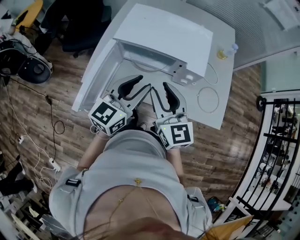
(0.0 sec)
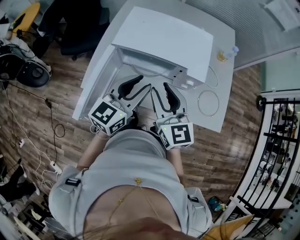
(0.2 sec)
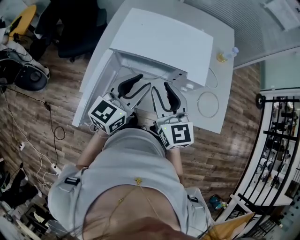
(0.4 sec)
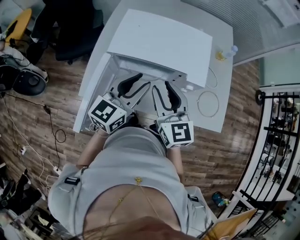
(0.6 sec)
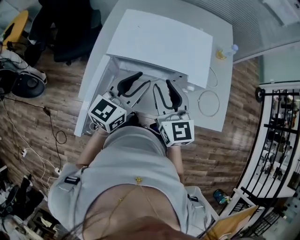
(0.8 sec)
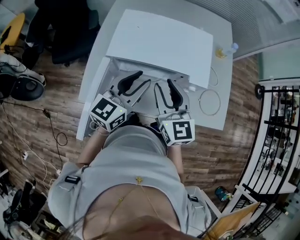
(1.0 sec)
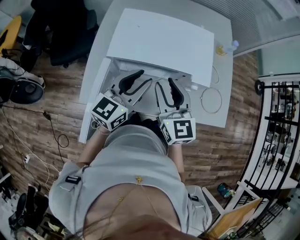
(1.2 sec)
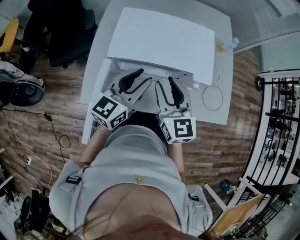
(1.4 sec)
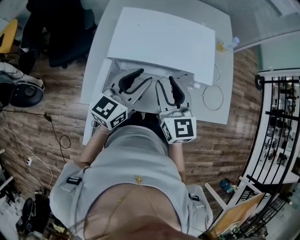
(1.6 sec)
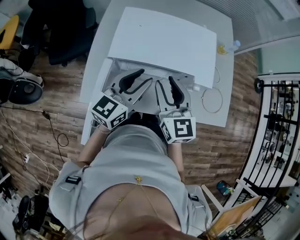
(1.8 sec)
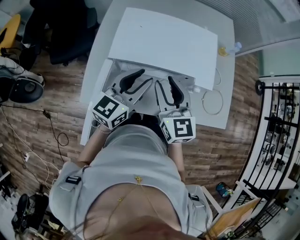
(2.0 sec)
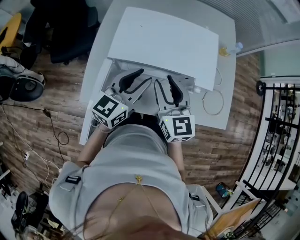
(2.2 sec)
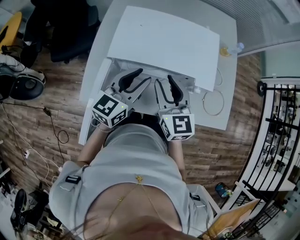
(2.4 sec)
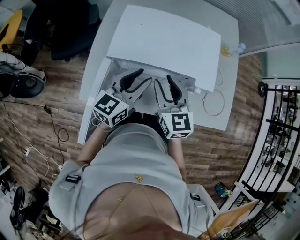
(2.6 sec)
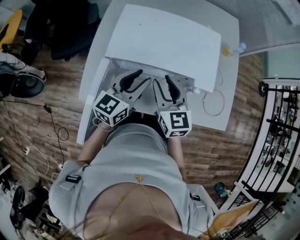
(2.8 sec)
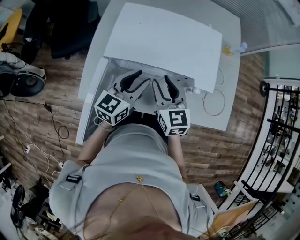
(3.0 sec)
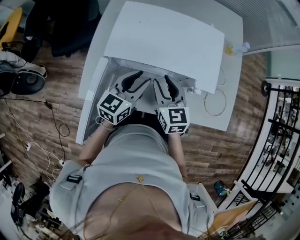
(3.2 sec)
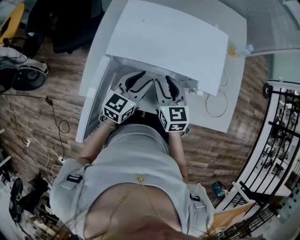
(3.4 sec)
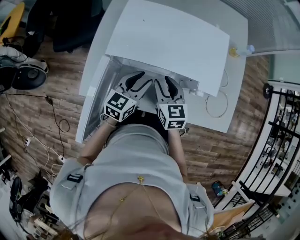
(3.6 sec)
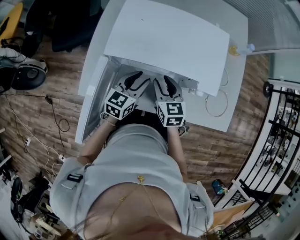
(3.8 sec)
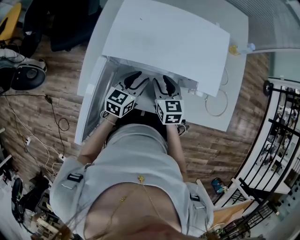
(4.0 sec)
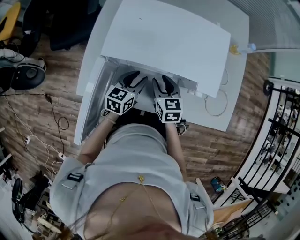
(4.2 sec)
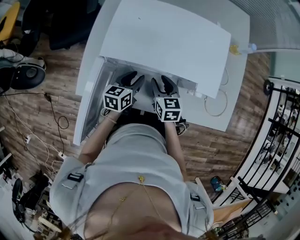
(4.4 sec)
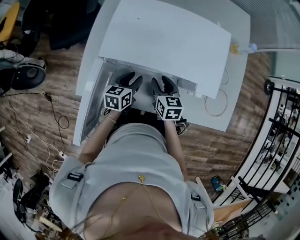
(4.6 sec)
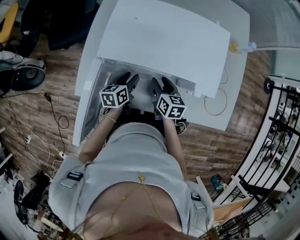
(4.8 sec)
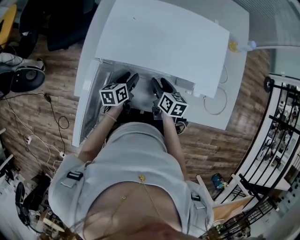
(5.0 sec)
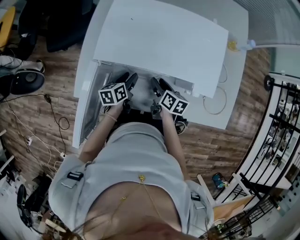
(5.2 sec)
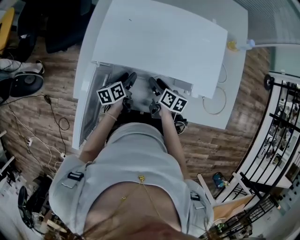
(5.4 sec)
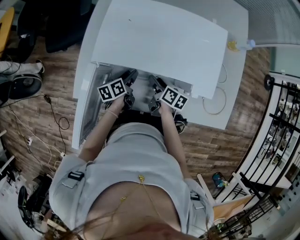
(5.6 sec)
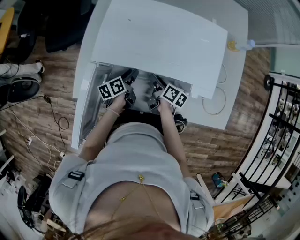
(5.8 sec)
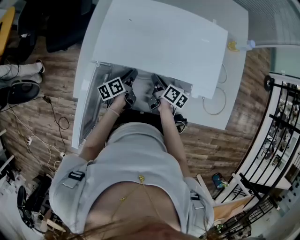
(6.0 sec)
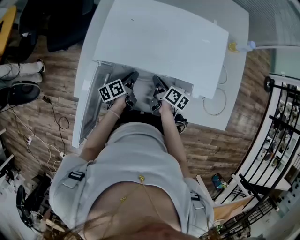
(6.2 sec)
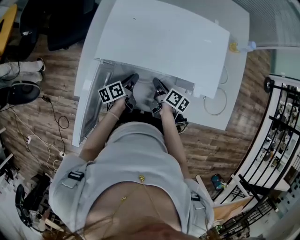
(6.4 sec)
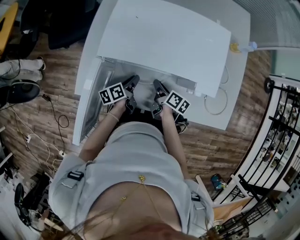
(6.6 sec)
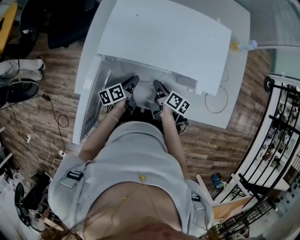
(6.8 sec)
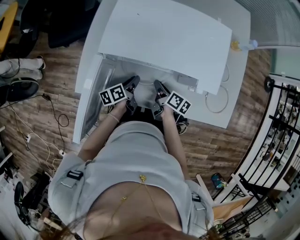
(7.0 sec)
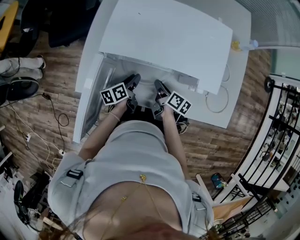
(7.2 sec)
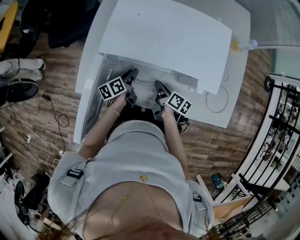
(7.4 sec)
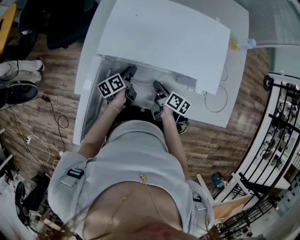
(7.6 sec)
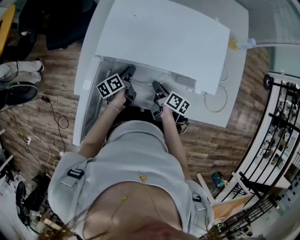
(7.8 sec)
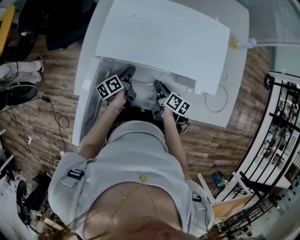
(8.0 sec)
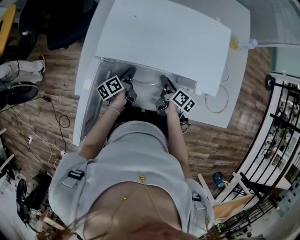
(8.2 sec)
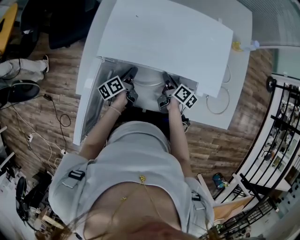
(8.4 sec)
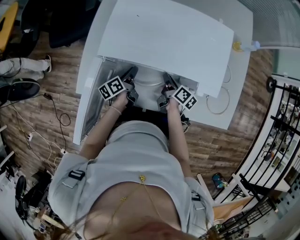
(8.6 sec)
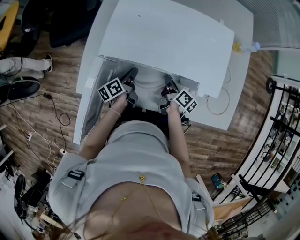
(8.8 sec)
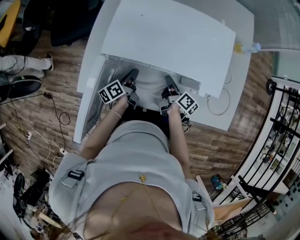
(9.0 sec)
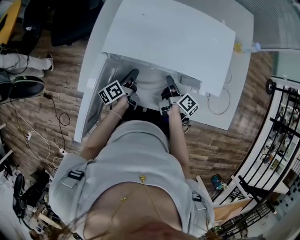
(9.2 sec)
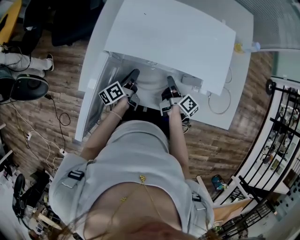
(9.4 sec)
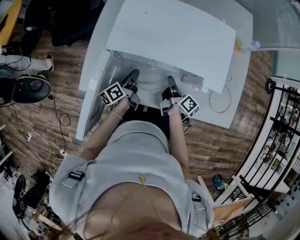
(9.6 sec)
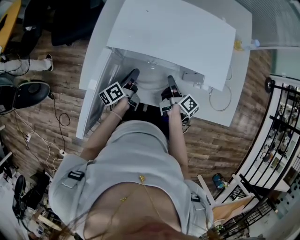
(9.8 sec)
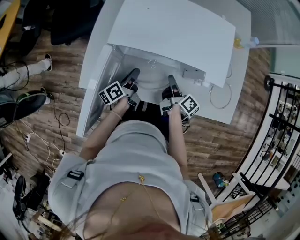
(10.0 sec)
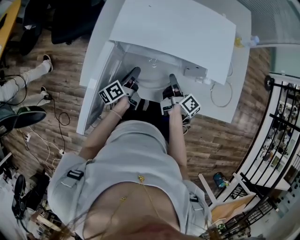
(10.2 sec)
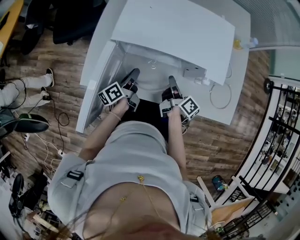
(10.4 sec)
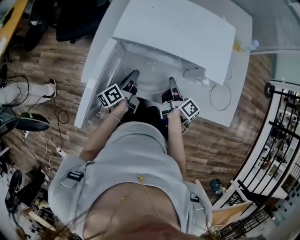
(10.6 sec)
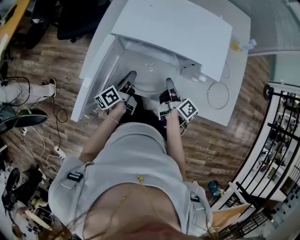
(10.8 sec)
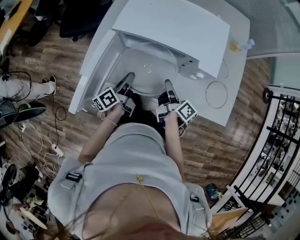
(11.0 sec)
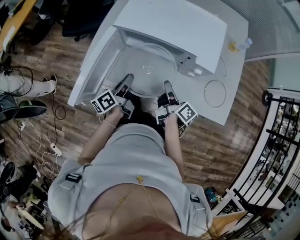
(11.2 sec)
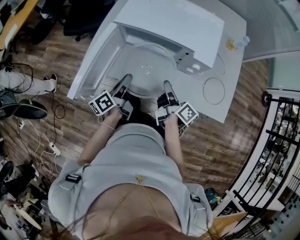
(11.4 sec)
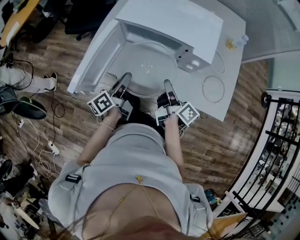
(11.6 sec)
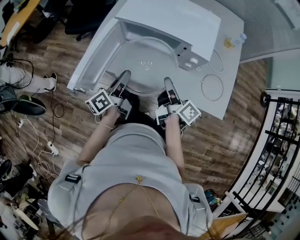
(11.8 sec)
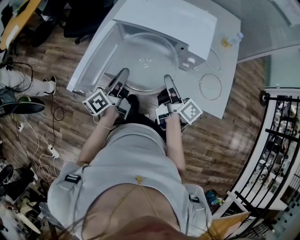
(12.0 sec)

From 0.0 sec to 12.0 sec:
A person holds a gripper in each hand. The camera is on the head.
From 0.0 sec to 1.6 sec: The left gripper heads forward and to the left, covering about 10 cm. Meanwhile the right gripper travels forward by some 10 cm.
From 1.6 sec to 3.0 sec: Both grippers move downward, about 5 cm.
From 3.0 sec to 4.4 sec: The grippers both shift downward by roughly 15 cm. The left gripper rotates some 30 degrees.
From 4.4 sec to 6.0 sec: The grippers both shift downward by some 10 cm. The right gripper rotates around the line of its fingers by approximately 50 degrees, clockwise from behind. Meanwhile the left gripper swivels roughly 40 degrees.
From 6.0 sec to 7.6 sec: There are only small adjustments of the grippers.
From 7.6 sec to 9.0 sec: The right gripper ends up roughly 5 cm from where it was.
From 9.0 sec to 10.4 sec: The right gripper changes place by about 5 cm. Meanwhile the left gripper moves about 5 cm.
From 10.4 sec to 12.0 sec: The grippers both shift upward and backward by some 20 cm. The right gripper changes its angle by roughly 20 degrees.

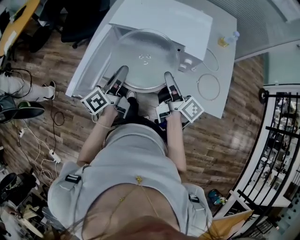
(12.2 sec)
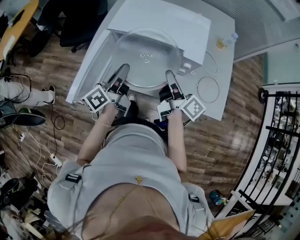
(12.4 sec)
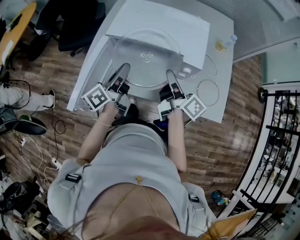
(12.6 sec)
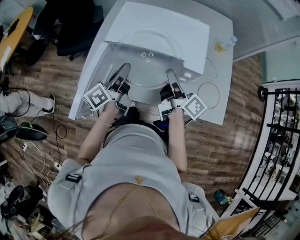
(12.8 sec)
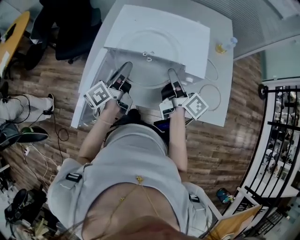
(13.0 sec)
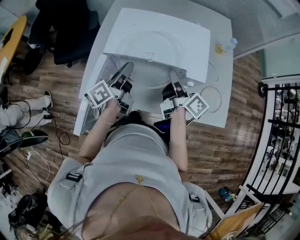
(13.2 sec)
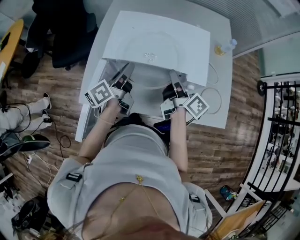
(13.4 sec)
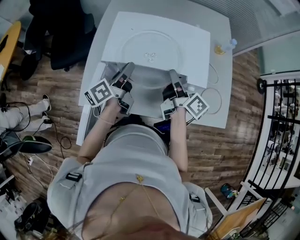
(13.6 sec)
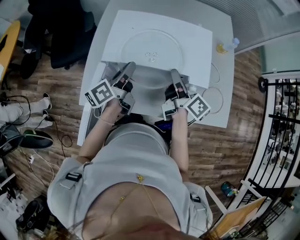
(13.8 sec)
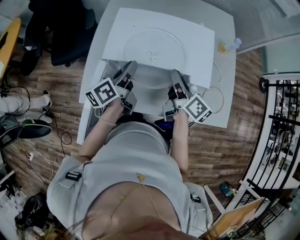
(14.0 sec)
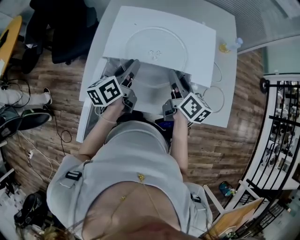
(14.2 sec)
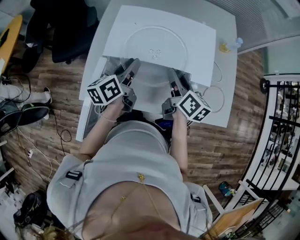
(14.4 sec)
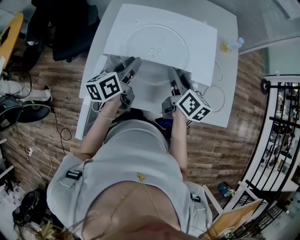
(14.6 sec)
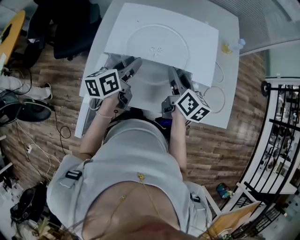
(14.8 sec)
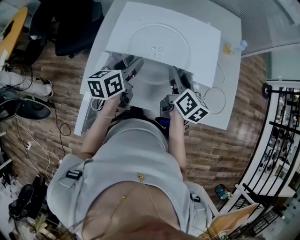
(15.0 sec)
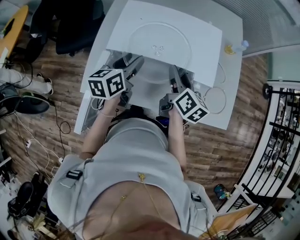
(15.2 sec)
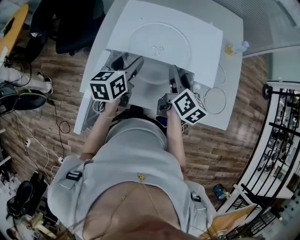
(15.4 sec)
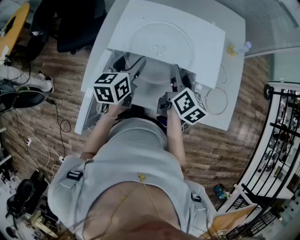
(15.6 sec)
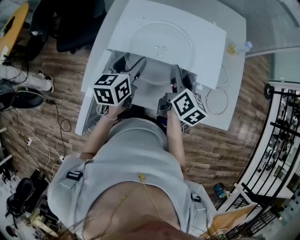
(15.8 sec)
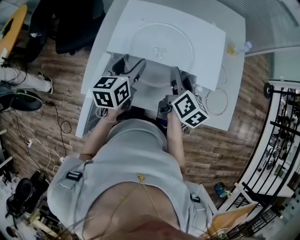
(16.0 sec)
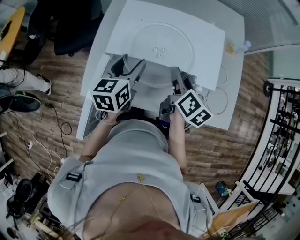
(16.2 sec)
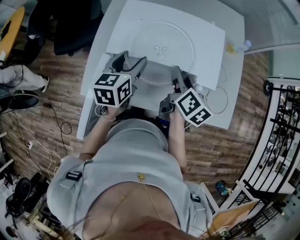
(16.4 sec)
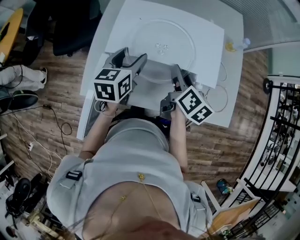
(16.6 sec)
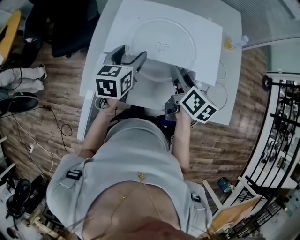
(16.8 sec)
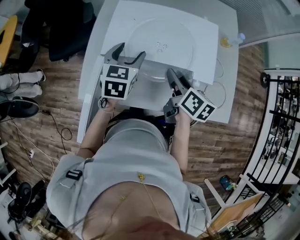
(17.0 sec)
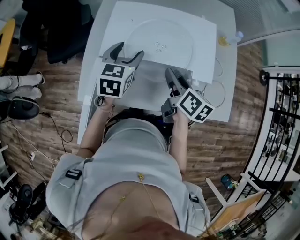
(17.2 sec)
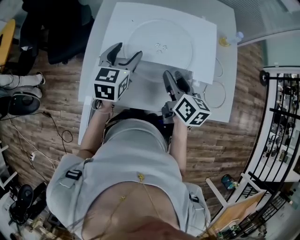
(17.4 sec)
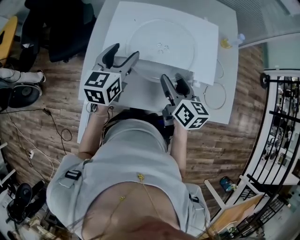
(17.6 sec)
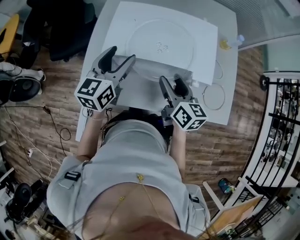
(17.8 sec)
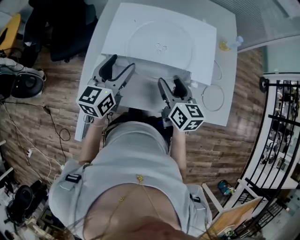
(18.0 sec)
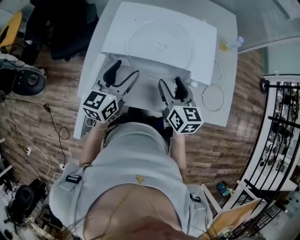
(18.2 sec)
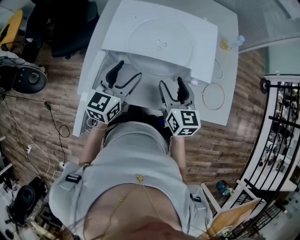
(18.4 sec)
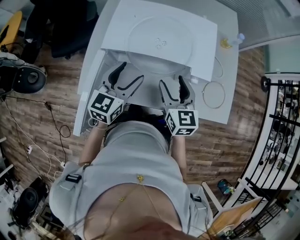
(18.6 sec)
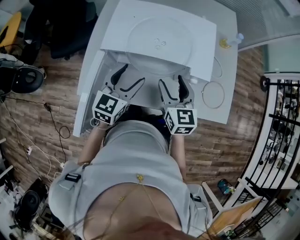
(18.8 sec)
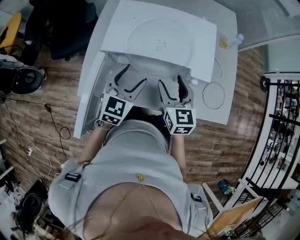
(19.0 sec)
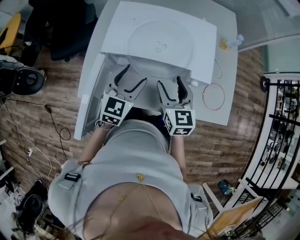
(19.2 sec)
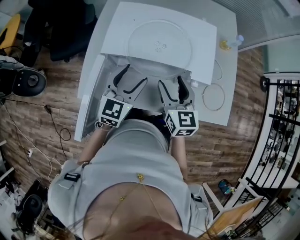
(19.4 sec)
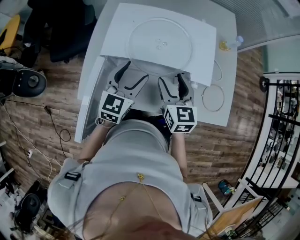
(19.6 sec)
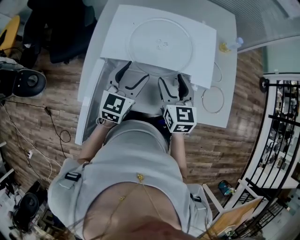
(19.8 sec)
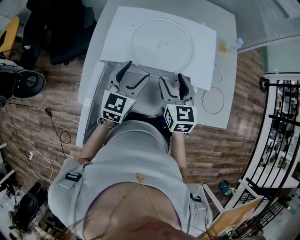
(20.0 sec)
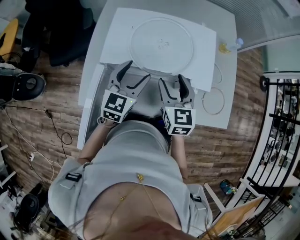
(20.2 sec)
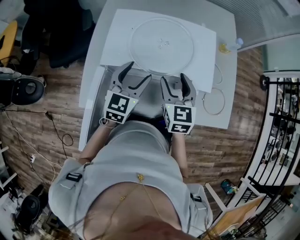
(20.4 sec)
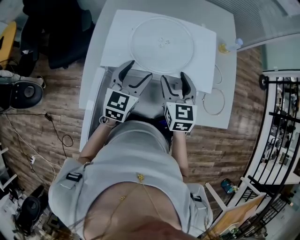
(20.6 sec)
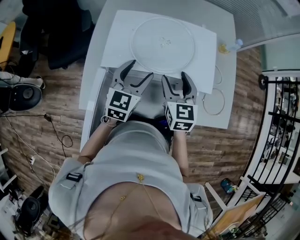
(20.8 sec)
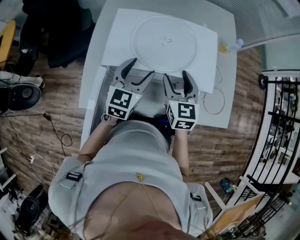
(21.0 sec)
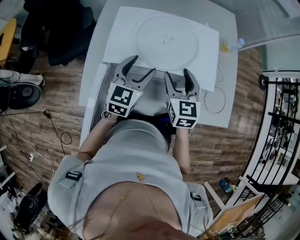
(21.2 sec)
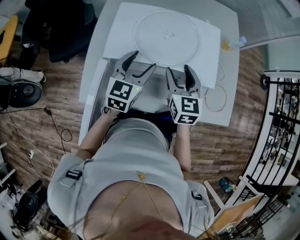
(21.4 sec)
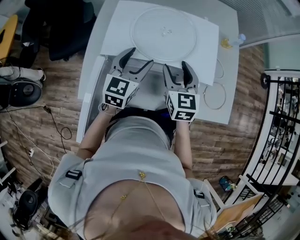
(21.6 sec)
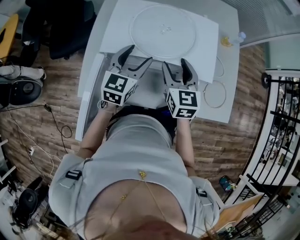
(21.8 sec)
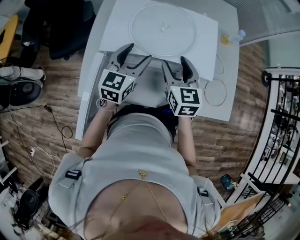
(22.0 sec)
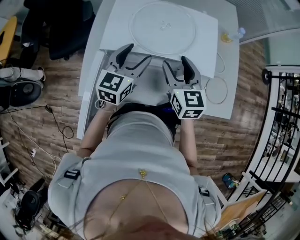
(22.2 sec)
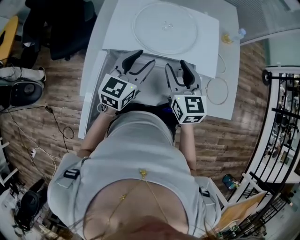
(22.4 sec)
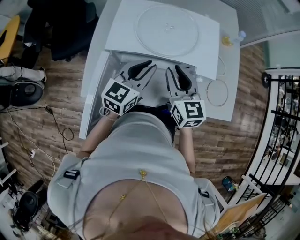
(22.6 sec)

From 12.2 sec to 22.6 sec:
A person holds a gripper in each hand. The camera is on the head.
From 12.2 sec to 13.6 sec: The two grippers go approximately 15 cm forward.
From 13.6 sec to 15.2 sec: The right gripper turns by approximately 30 degrees, and opens its fingers. The left gripper rotates some 30 degrees, and opens up.
From 15.2 sec to 16.6 sec: The grippers make only small movements.
From 16.6 sec to 18.2 sec: The right gripper changes its angle by roughly 30 degrees. The left gripper shifts approximately 5 cm backward.
From 19.6 sec to 21.2 sec: There are only small adjustments of the grippers.
From 21.2 sec to 22.6 sec: The left gripper ends up approximately 5 cm from where it was, and closes its fingers. Meanwhile the right gripper closes up.

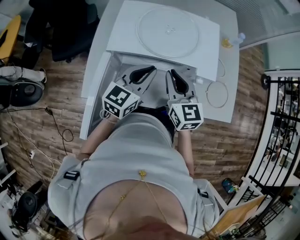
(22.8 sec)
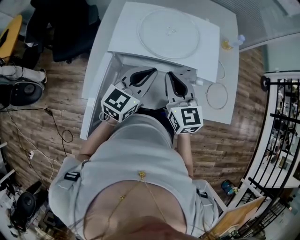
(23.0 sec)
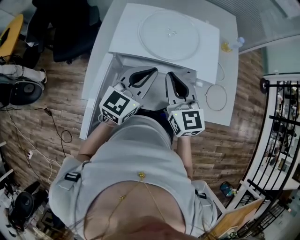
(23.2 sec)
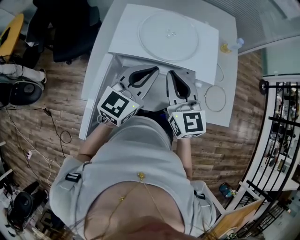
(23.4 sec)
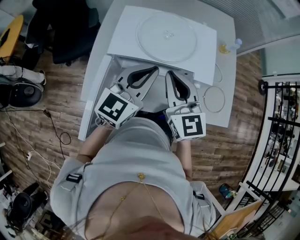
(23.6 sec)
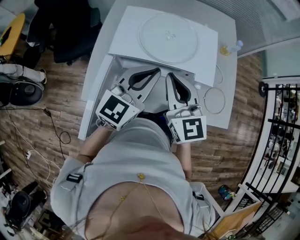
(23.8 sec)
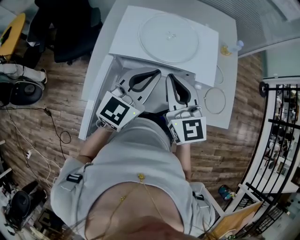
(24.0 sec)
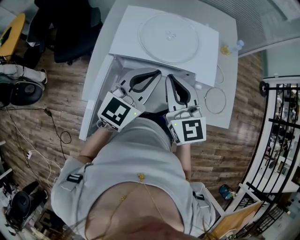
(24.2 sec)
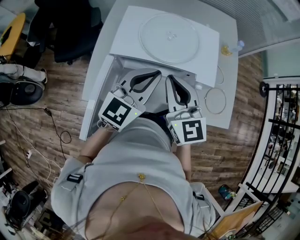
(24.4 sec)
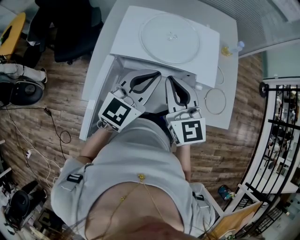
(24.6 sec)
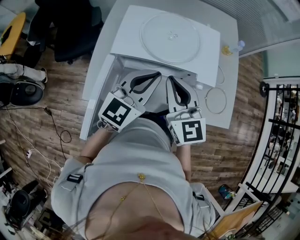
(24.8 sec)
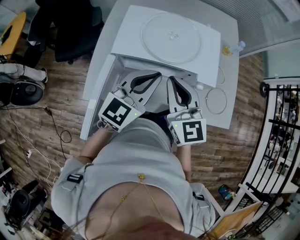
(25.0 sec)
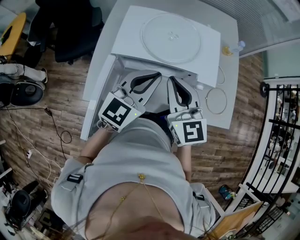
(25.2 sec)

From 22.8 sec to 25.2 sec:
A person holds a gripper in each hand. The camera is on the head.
From 22.8 sec to 24.0 sec: The two grippers go about 10 cm upward.
From 24.0 sec to 25.2 sec: The two grippers keep their place.
